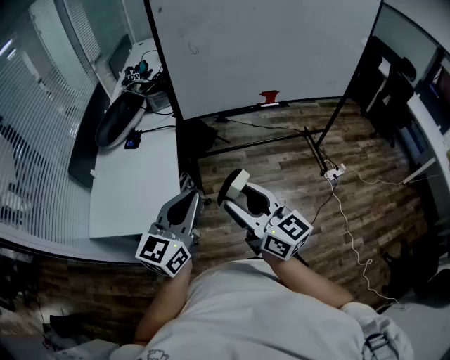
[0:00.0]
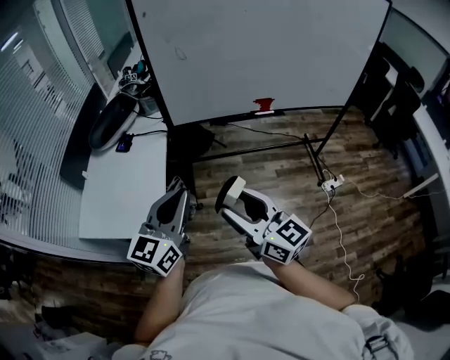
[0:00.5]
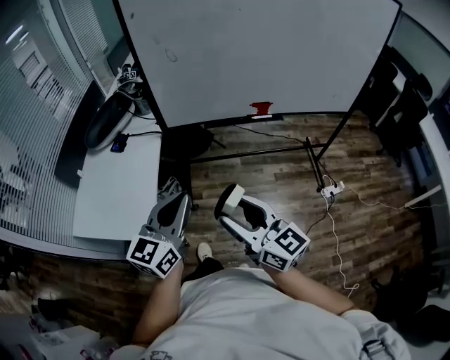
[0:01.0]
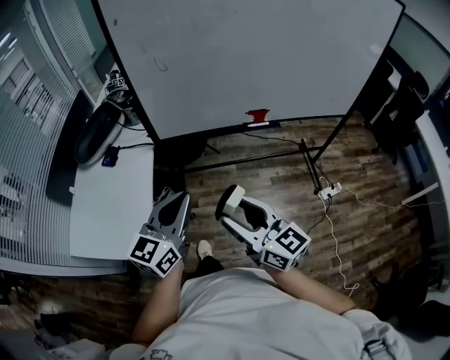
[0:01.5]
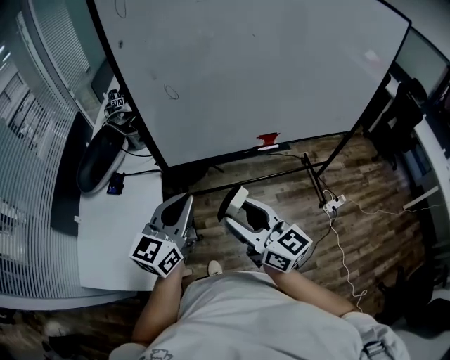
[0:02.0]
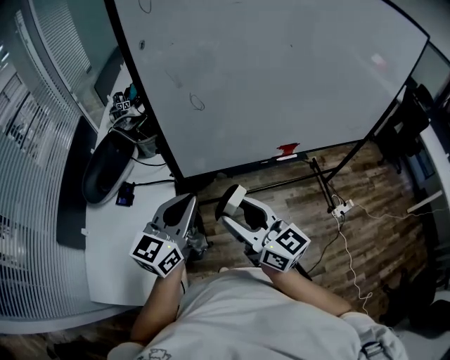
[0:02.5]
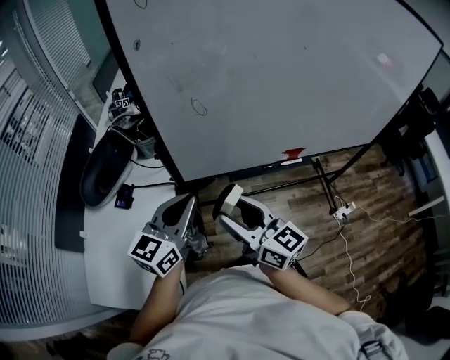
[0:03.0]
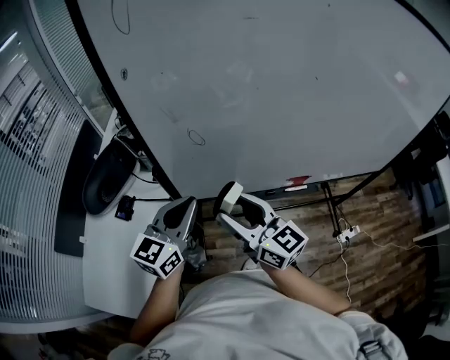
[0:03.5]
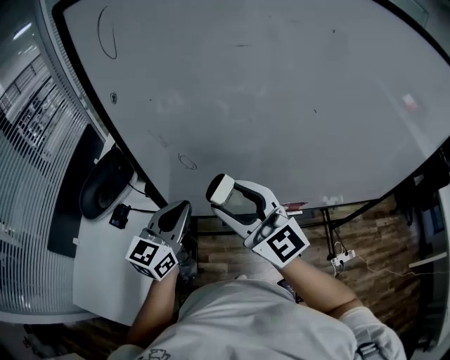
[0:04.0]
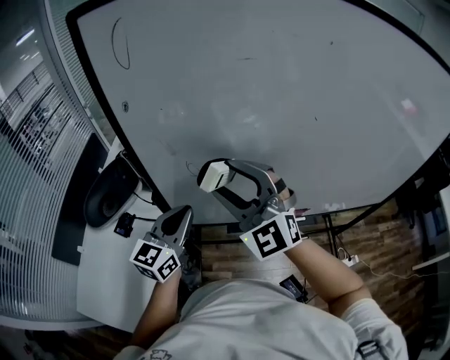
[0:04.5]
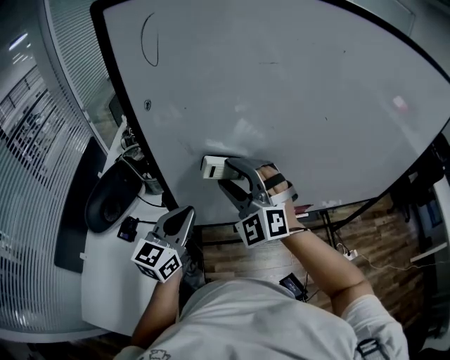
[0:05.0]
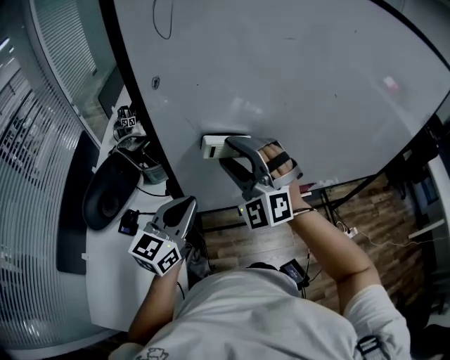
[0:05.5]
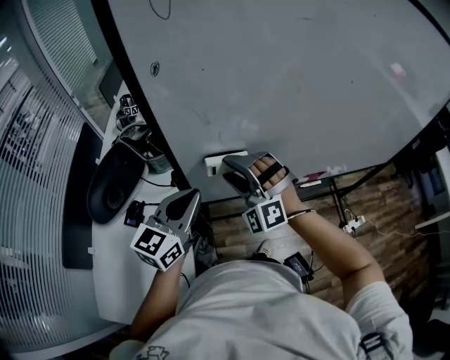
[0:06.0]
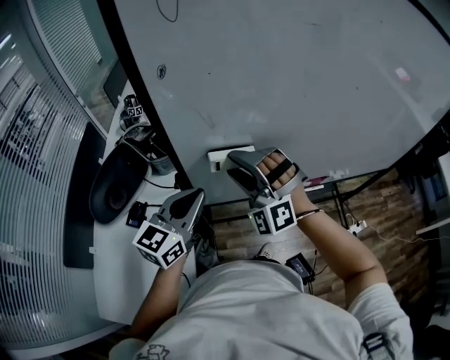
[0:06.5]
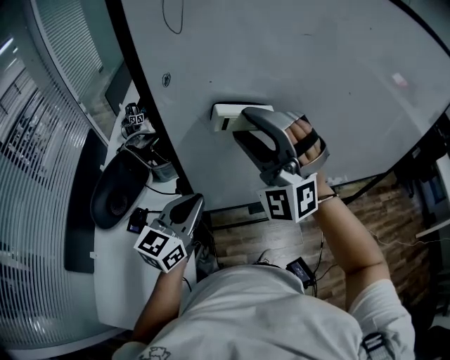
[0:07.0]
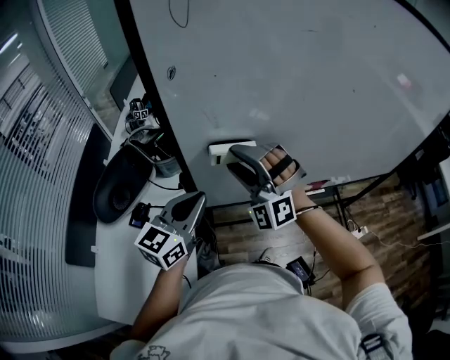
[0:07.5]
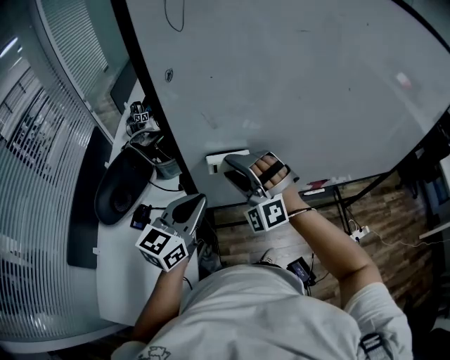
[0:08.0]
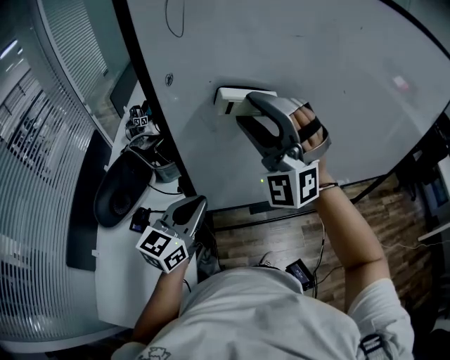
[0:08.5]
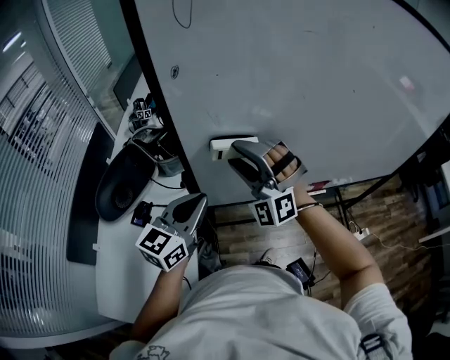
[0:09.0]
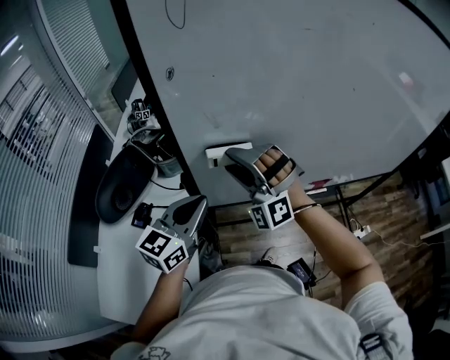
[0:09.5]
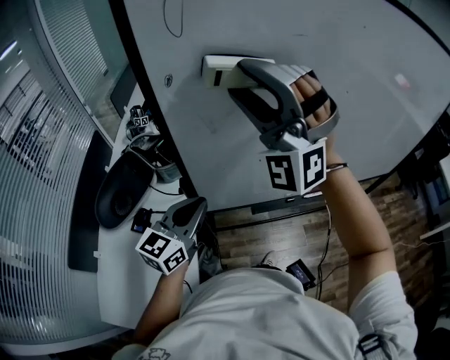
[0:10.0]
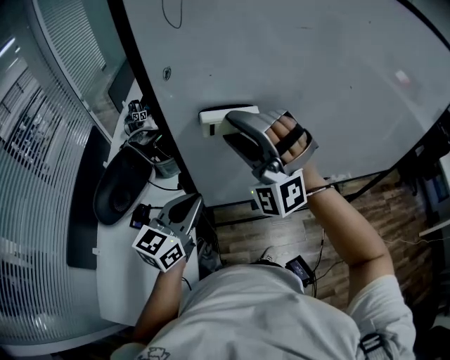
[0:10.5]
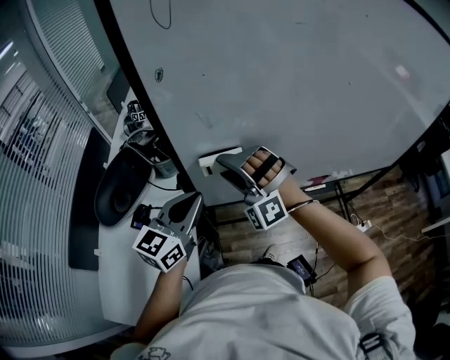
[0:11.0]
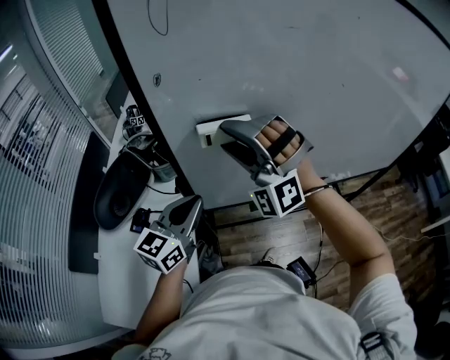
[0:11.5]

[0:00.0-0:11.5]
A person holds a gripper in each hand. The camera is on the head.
0:00.0 to 0:02.0: The left gripper heads forward, covering roughly 30 cm. The right gripper heads forward and to the right, covering approximately 25 cm.
0:02.0 to 0:04.0: The two grippers go approximately 25 cm forward. The right gripper rotates some 30 degrees.
0:04.0 to 0:06.0: The left gripper travels to the left by about 10 cm; the right gripper moves downward, to the left and forward, some 20 cm, and twists approximately 60 degrees counterclockwise, seen from behind.
0:06.0 to 0:07.5: The right gripper reaches about 20 cm upward, then returns.
0:07.5 to 0:09.5: The right gripper travels upward and back again, approximately 15 cm each way.
0:09.5 to 0:11.5: The right gripper moves up and down over roughly 30 cm, changing direction 2 times.

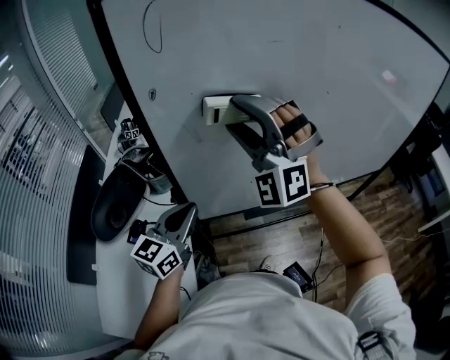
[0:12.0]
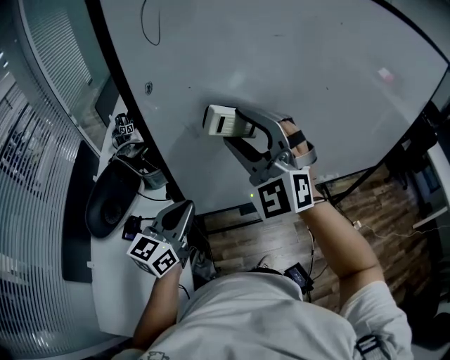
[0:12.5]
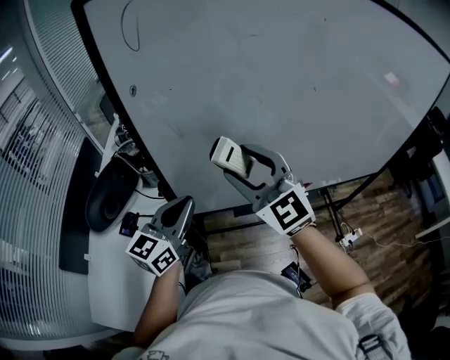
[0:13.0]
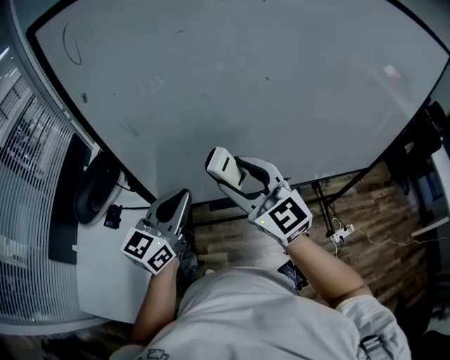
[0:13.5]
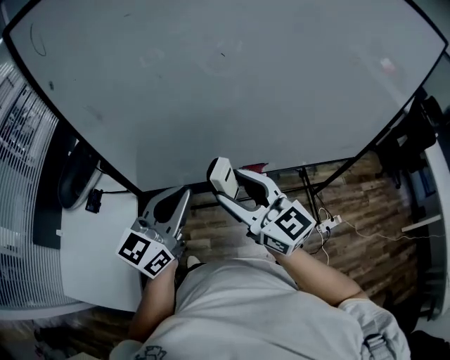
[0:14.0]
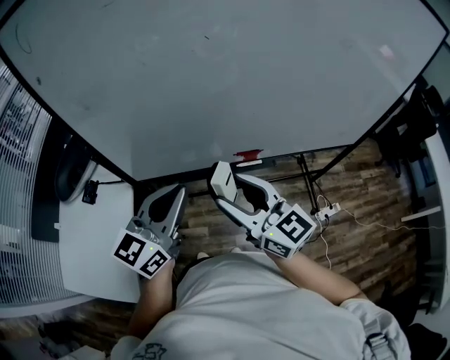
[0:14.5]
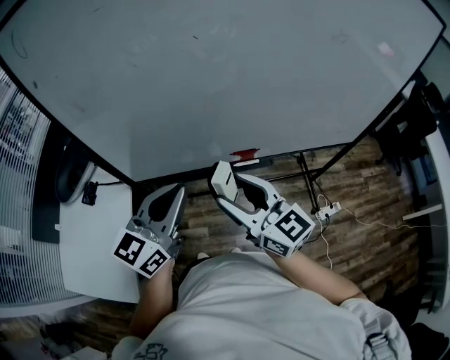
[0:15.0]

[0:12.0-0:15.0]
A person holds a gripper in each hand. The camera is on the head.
0:12.0 to 0:13.5: The right gripper shifts roughly 20 cm to the right, downward and backward, and rolls clockwise, seen from behind, by roughly 70 degrees. Meanwhile the left gripper shifts approximately 15 cm to the right.
0:13.5 to 0:15.0: The right gripper travels to the right, backward and downward by about 20 cm, and changes its angle by approximately 30 degrees; the left gripper travels to the right and backward by approximately 15 cm.

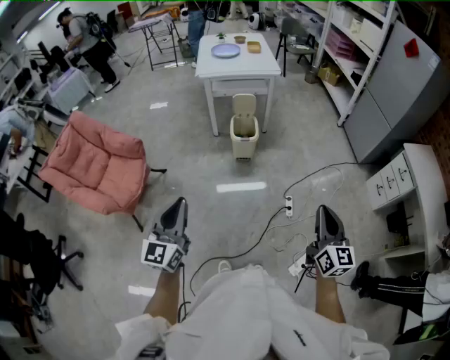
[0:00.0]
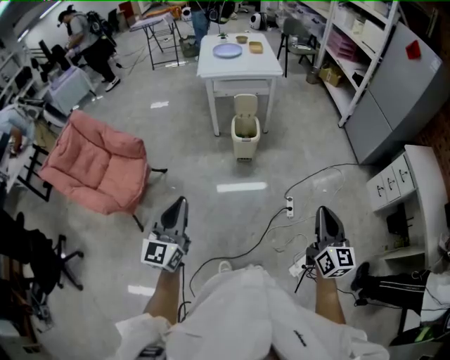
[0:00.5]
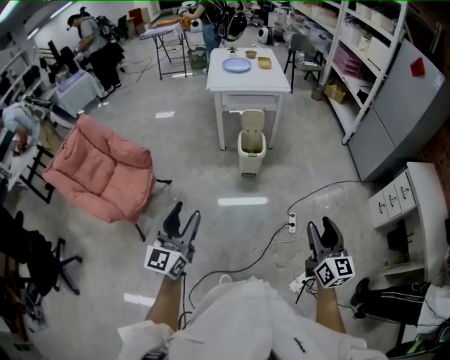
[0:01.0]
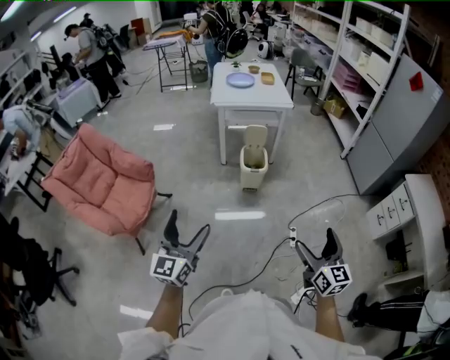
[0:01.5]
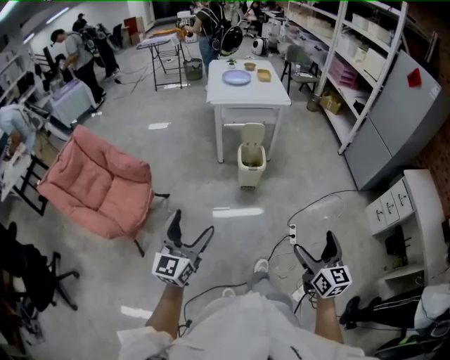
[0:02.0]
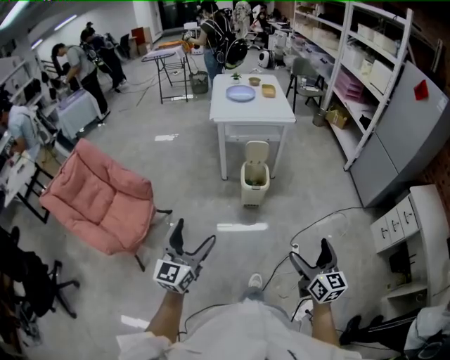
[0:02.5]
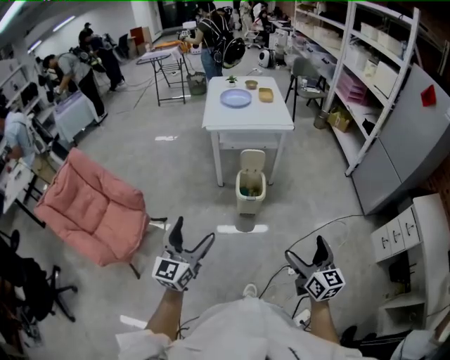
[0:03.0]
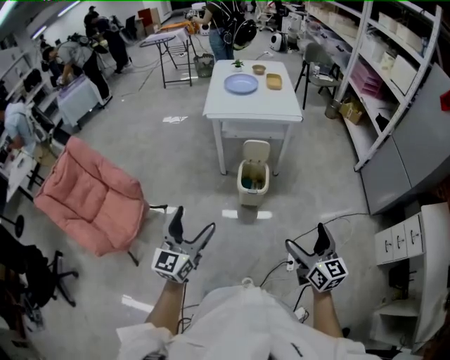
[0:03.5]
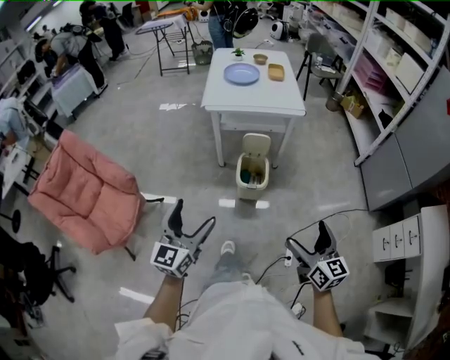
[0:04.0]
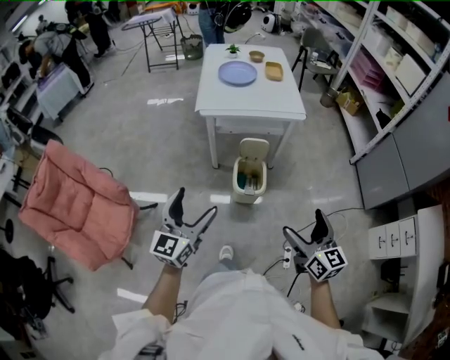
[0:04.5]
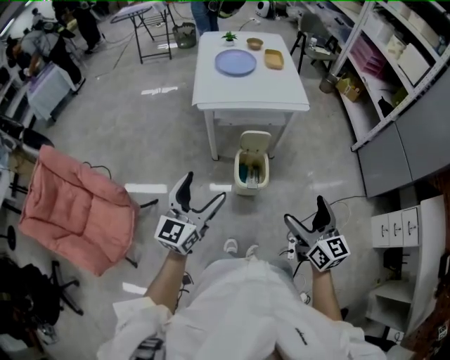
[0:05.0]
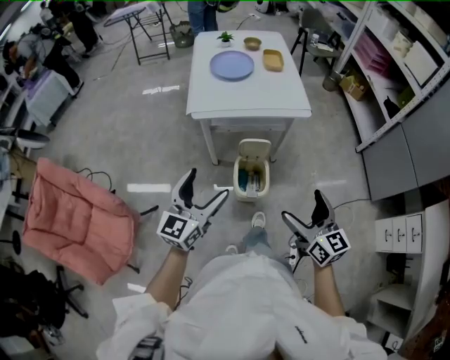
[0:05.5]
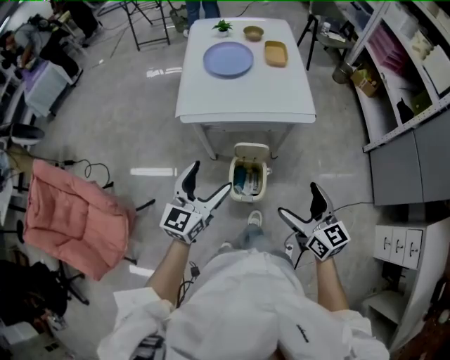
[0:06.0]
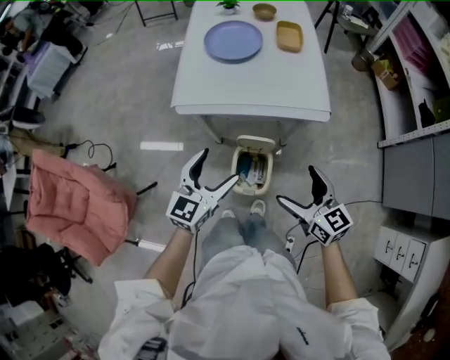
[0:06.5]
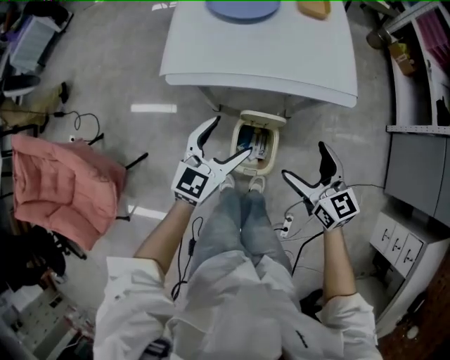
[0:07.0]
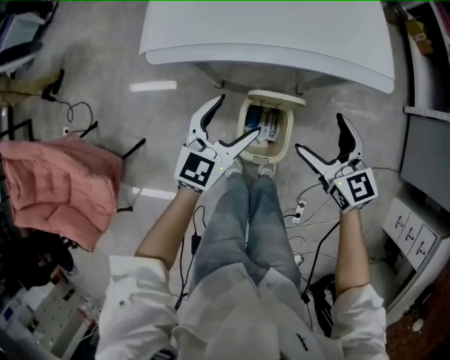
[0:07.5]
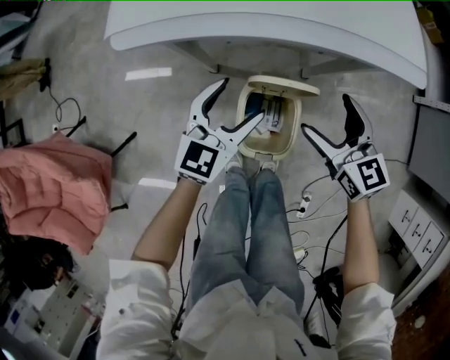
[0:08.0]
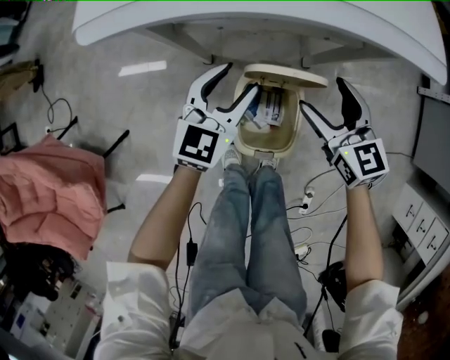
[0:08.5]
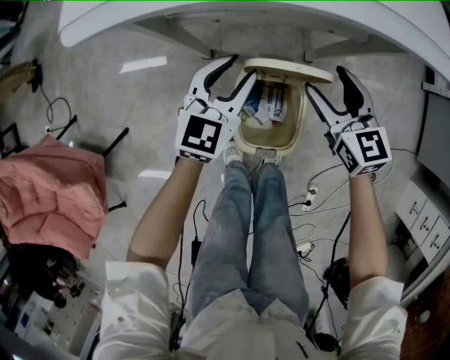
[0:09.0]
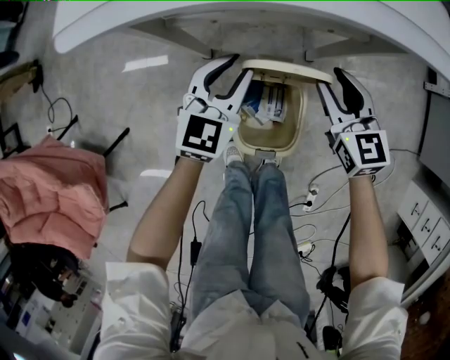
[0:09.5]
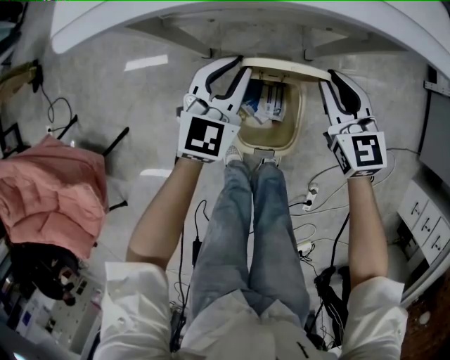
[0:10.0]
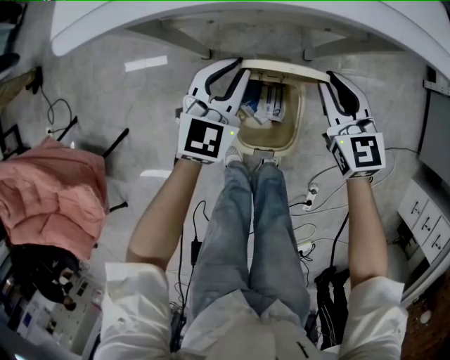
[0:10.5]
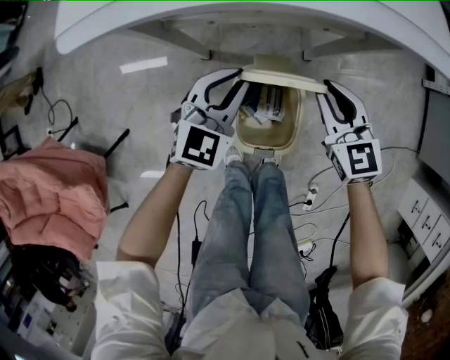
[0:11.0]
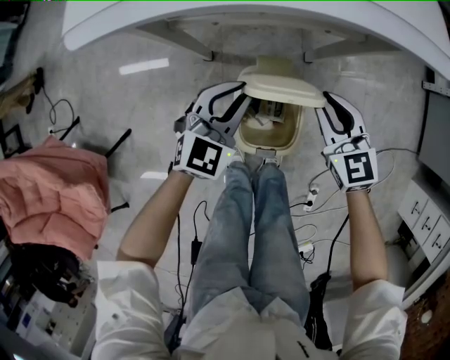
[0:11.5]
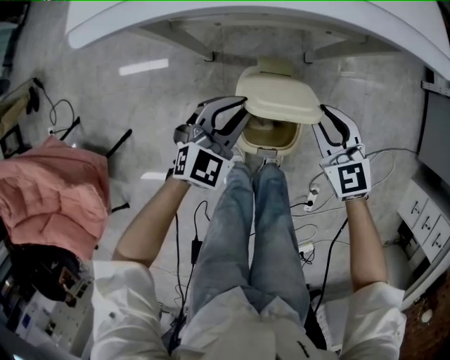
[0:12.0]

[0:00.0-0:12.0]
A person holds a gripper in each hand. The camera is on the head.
0:00.0 to 0:02.0: The left gripper moves to the left and forward, approximately 10 cm, and opens up; the right gripper travels to the left by about 10 cm, and opens up.
0:02.0 to 0:04.0: The grippers both shift forward by about 30 cm.
0:04.0 to 0:06.0: Both grippers move forward, approximately 40 cm.
0:06.0 to 0:08.0: Both grippers travel together downward and forward, about 40 cm.
0:08.0 to 0:10.0: Both grippers travel together downward, about 10 cm. The right gripper closes its fingers. The left gripper closes its fingers.
0:10.0 to 0:12.0: The two grippers go approximately 10 cm backward.
